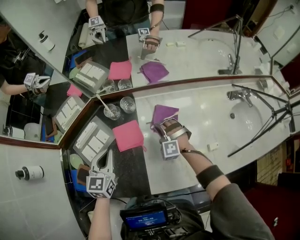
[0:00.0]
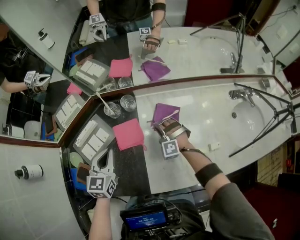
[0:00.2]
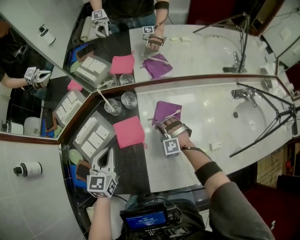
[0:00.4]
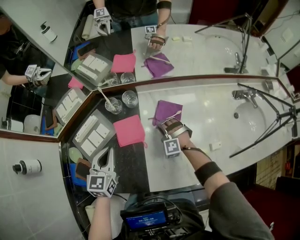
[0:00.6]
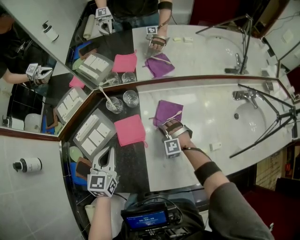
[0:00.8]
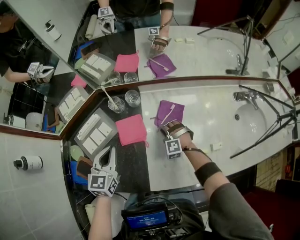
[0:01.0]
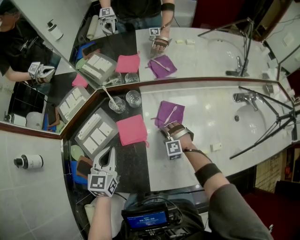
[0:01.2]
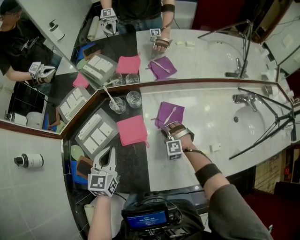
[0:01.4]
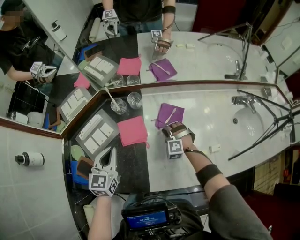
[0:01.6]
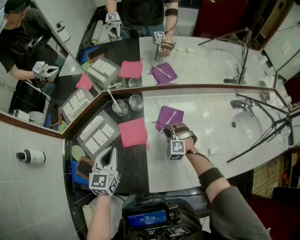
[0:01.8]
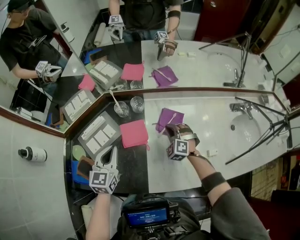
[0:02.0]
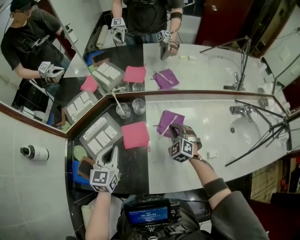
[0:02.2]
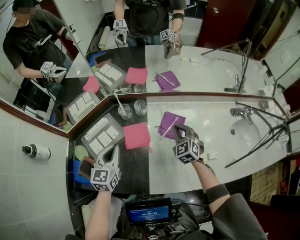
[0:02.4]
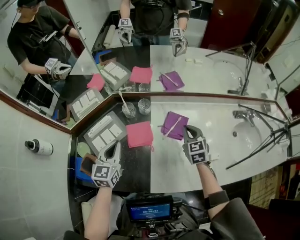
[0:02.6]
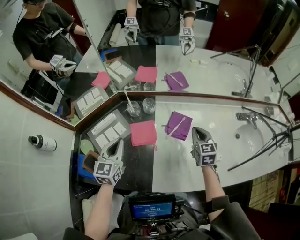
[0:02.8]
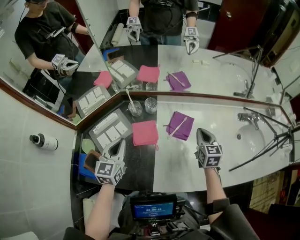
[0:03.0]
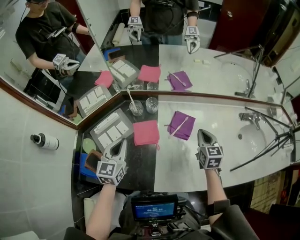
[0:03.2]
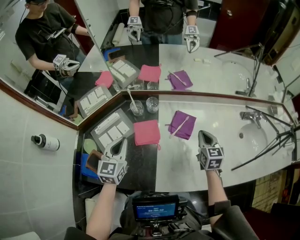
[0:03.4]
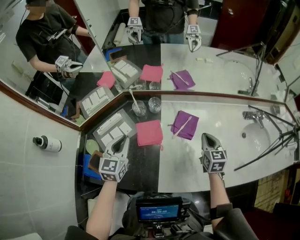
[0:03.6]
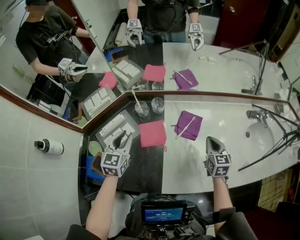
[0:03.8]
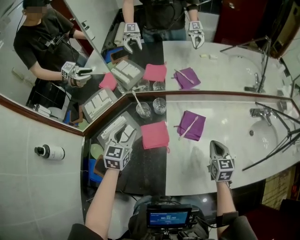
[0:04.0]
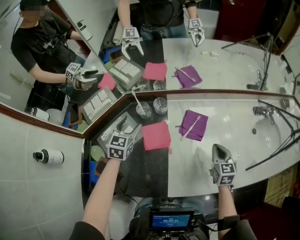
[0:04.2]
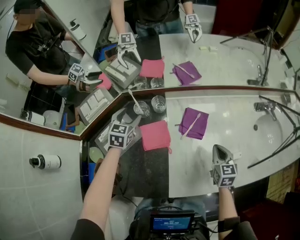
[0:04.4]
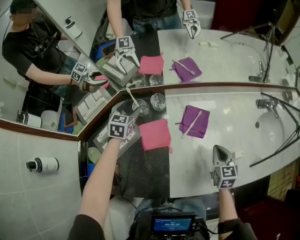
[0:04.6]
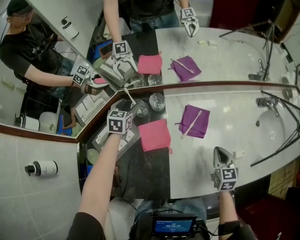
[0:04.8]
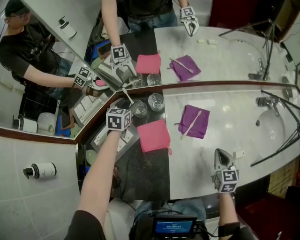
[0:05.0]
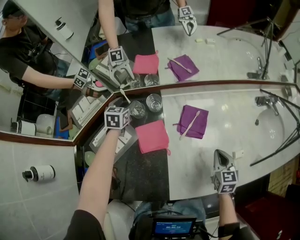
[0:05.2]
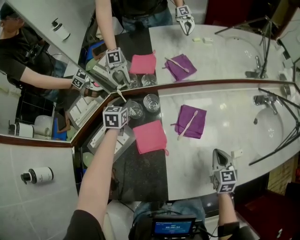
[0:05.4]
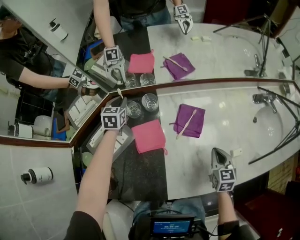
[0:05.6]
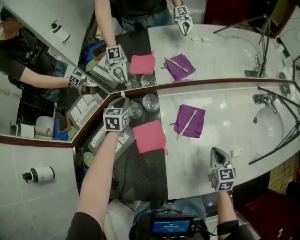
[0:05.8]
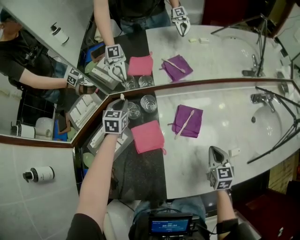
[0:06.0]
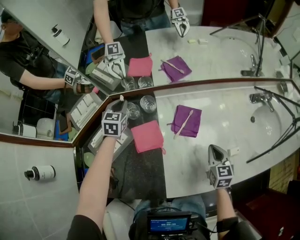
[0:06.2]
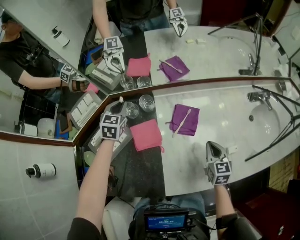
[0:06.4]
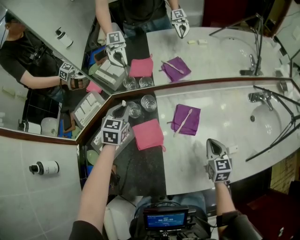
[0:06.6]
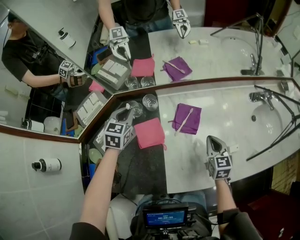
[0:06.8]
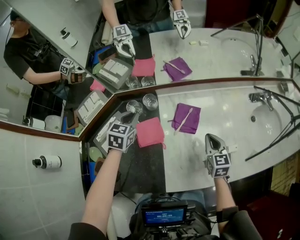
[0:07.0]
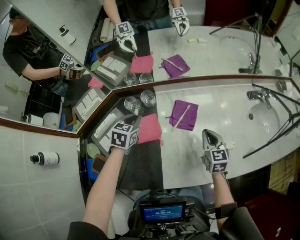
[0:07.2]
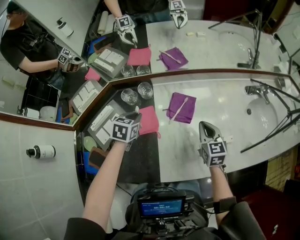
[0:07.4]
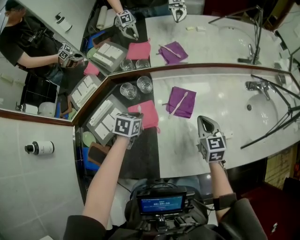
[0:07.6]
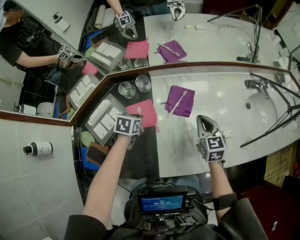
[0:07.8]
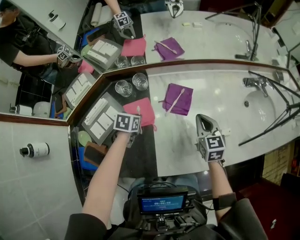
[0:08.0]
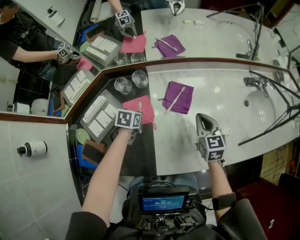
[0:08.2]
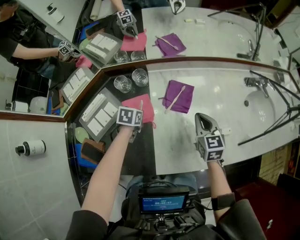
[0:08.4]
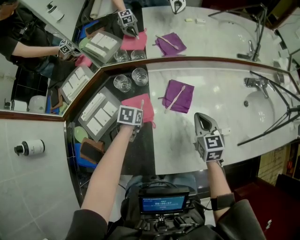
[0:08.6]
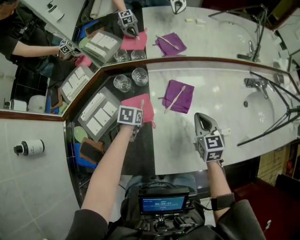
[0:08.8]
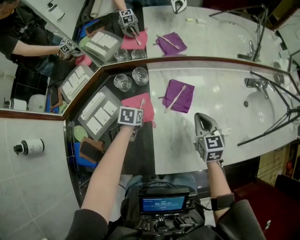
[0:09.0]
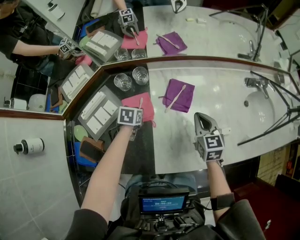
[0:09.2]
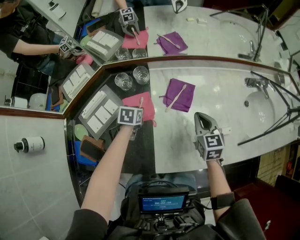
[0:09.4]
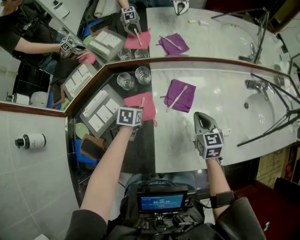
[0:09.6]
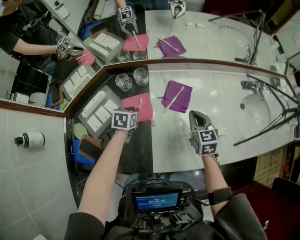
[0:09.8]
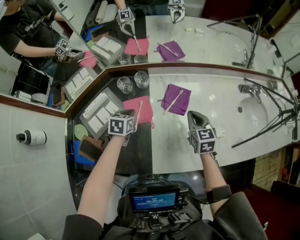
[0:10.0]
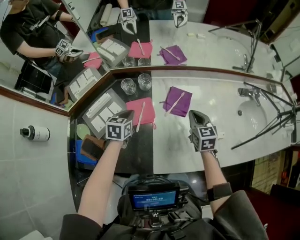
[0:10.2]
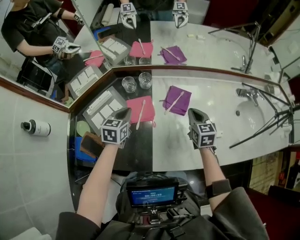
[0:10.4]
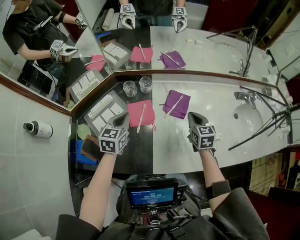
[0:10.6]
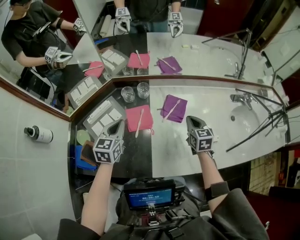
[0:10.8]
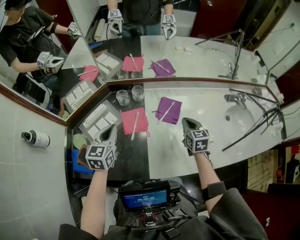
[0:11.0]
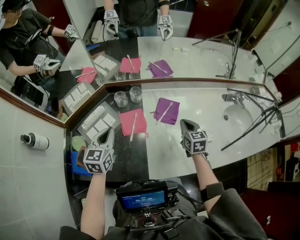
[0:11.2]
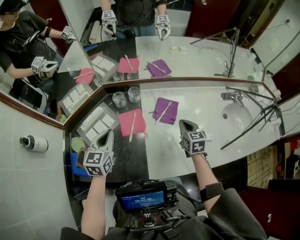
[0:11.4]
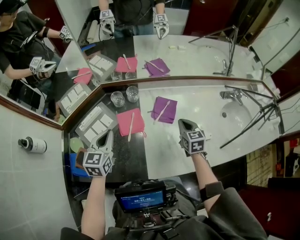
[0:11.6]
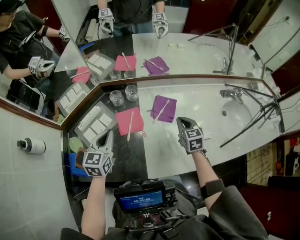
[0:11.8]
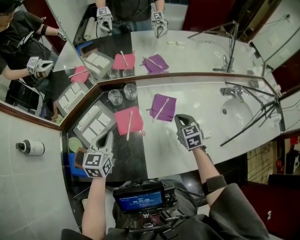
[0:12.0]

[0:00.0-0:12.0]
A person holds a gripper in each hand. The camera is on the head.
0:00.0 to 0:01.6: The right gripper moves downward, about 5 cm.
0:01.6 to 0:03.0: The right gripper goes roughly 20 cm upward and to the right, rolls clockwise, seen from behind, by approximately 80 degrees, and closes.
0:03.0 to 0:04.4: The right gripper goes about 10 cm backward and downward. The left gripper travels forward and downward by roughly 20 cm, rotates about 20 degrees, and opens up.
0:04.4 to 0:06.0: The left gripper moves forward, approximately 10 cm, and closes.
0:06.0 to 0:07.6: The right gripper is displaced upward by approximately 5 cm. The left gripper heads backward and to the right, covering roughly 20 cm, and turns by some 30 degrees.
0:07.6 to 0:09.0: The left gripper is displaced downward by roughly 10 cm.
0:09.0 to 0:10.4: The left gripper heads upward, covering about 15 cm, and turns by roughly 30 degrees.
0:10.4 to 0:12.0: The left gripper travels upward and backward by some 10 cm.

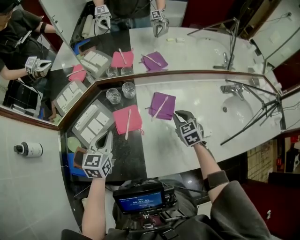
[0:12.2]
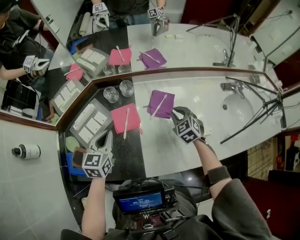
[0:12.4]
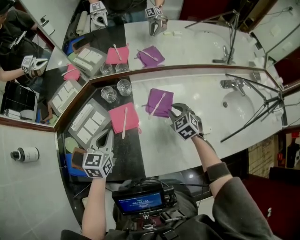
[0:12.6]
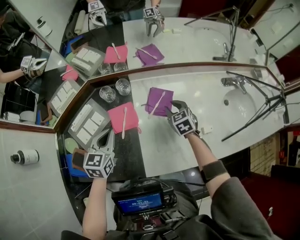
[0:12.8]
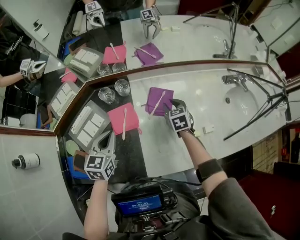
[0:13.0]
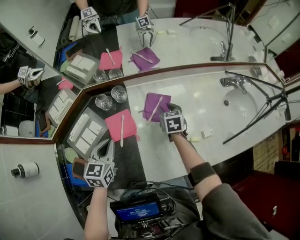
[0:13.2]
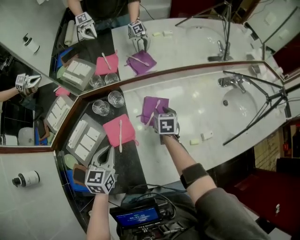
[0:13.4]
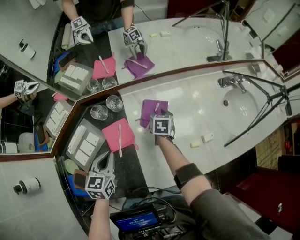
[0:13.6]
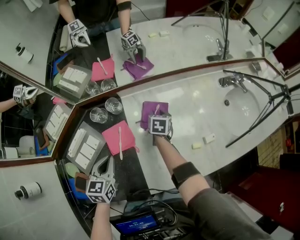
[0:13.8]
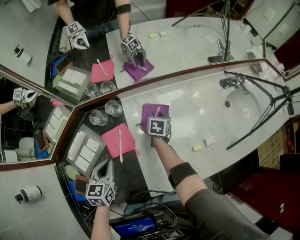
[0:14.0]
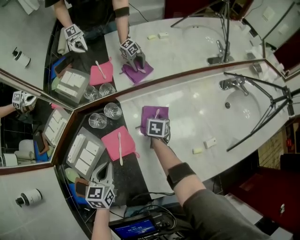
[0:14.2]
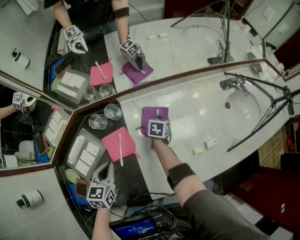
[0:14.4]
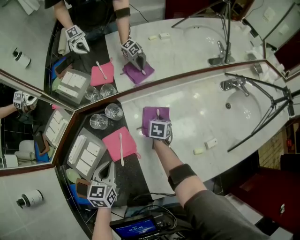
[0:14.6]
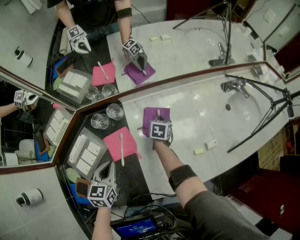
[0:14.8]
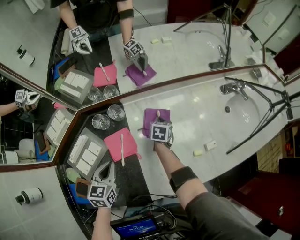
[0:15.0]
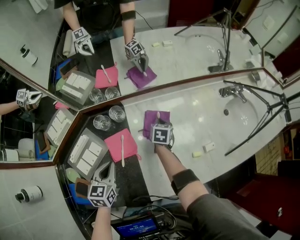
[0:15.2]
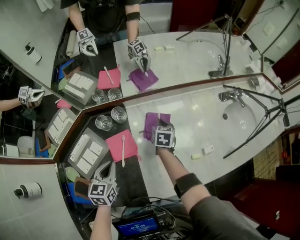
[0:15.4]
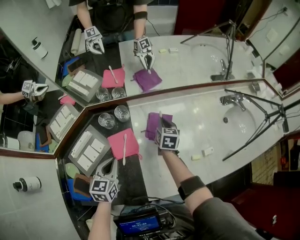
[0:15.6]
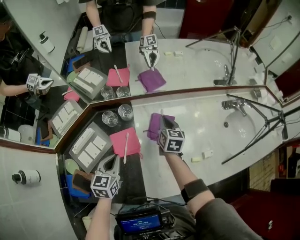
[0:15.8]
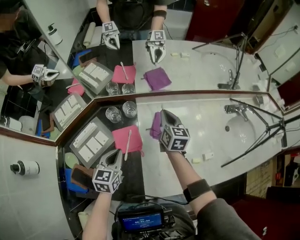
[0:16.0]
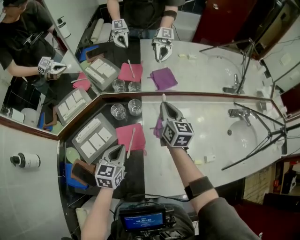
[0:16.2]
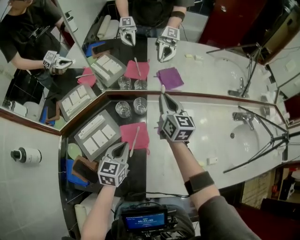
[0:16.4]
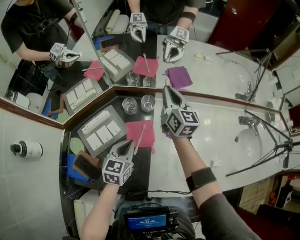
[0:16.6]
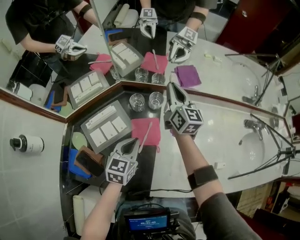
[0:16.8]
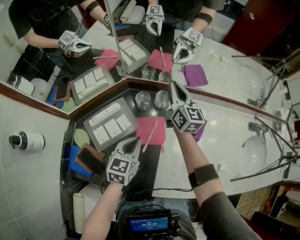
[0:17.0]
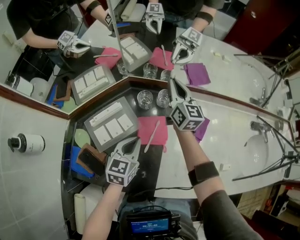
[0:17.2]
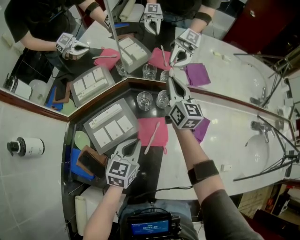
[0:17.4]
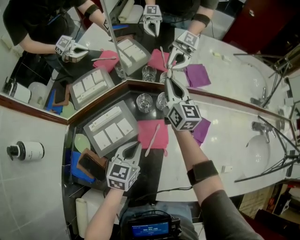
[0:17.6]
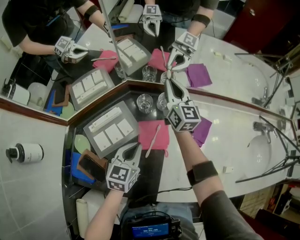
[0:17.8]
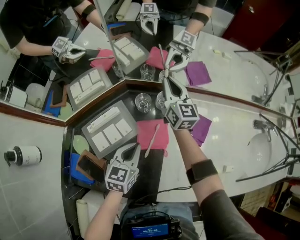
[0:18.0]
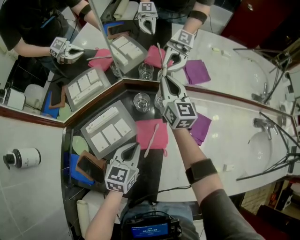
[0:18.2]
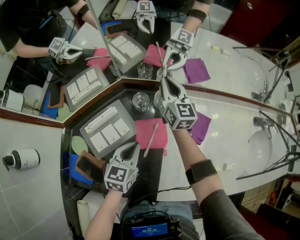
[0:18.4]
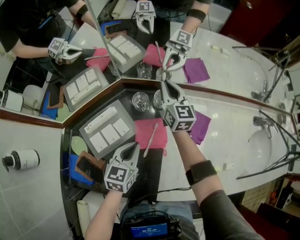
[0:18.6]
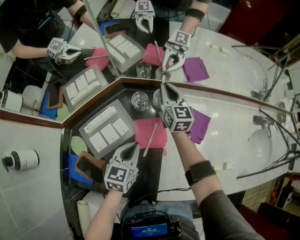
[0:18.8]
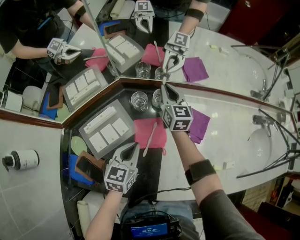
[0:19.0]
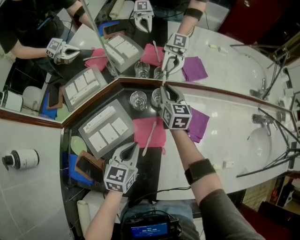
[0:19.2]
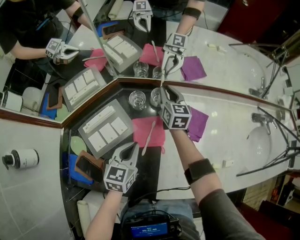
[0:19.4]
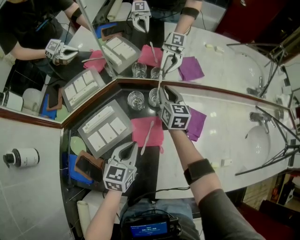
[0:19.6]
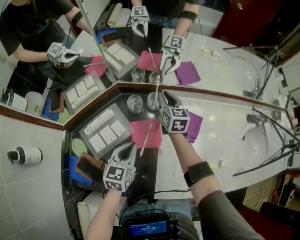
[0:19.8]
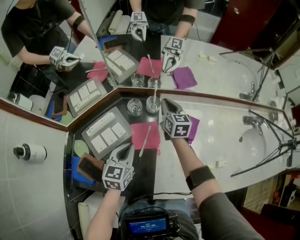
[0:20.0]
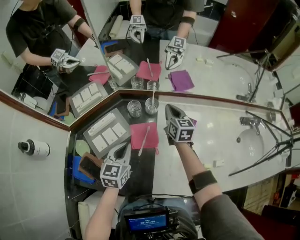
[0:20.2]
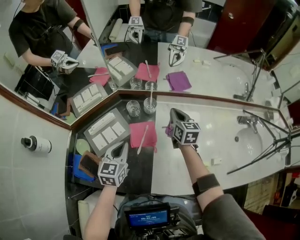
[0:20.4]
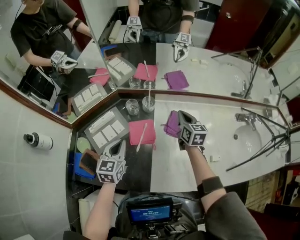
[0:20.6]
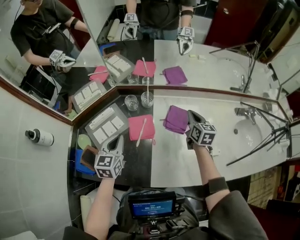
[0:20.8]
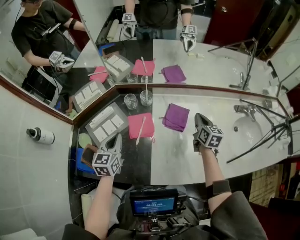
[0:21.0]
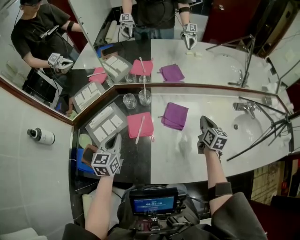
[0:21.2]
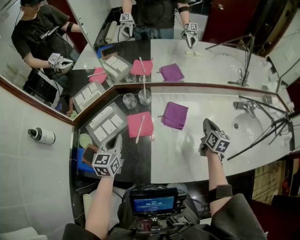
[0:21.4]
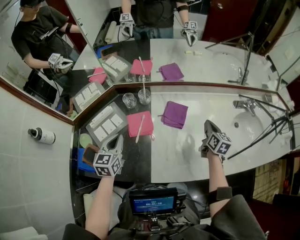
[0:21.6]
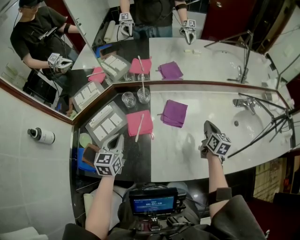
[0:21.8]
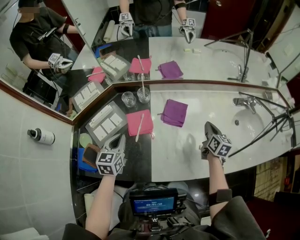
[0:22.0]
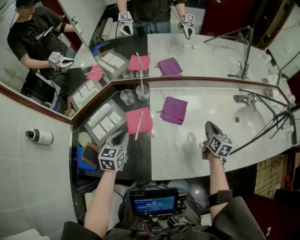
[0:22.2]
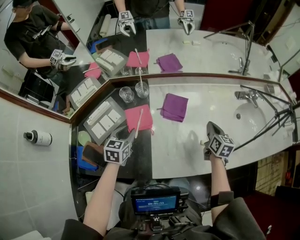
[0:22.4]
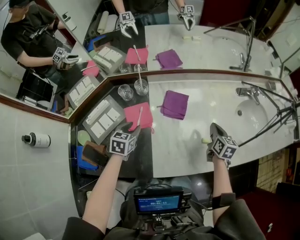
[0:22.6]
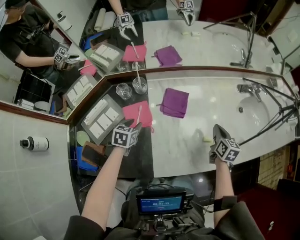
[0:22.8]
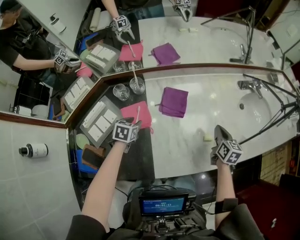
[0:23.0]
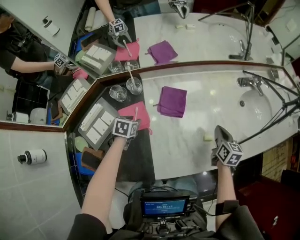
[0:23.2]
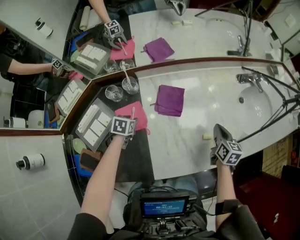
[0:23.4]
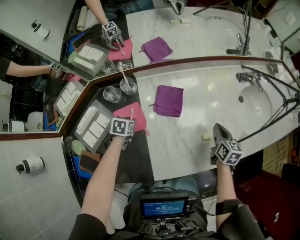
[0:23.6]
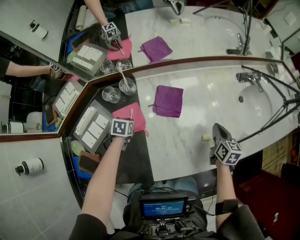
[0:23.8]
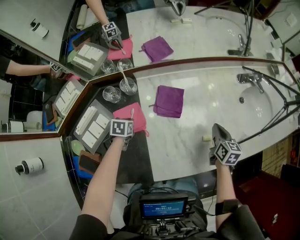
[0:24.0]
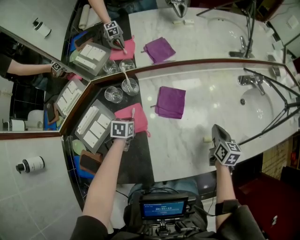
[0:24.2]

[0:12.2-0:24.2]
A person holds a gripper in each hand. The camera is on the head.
0:12.2 to 0:13.8: The left gripper heads downward, covering roughly 5 cm, while the right gripper shifts some 15 cm downward and forward, twists approximately 40 degrees clockwise, seen from behind, and opens.
0:13.8 to 0:15.2: The right gripper closes up.
0:15.2 to 0:16.6: The right gripper heads upward and to the left, covering some 30 cm, and tilts its fingers roughly 50 degrees upward.
0:16.6 to 0:18.2: The left gripper changes place by some 5 cm, while the right gripper moves to the left, downward and forward, some 10 cm.
0:18.2 to 0:19.8: The right gripper moves downward, roughly 5 cm.
0:19.8 to 0:21.2: The right gripper shifts some 35 cm to the right and backward. The left gripper travels upward by roughly 10 cm.
0:21.2 to 0:22.6: The right gripper shifts approximately 10 cm backward and to the right; the left gripper is displaced downward and to the right by some 15 cm, rotates roughly 30 degrees, and opens its fingers.
0:22.6 to 0:24.2: The left gripper moves downward and forward, some 15 cm, and closes up.
